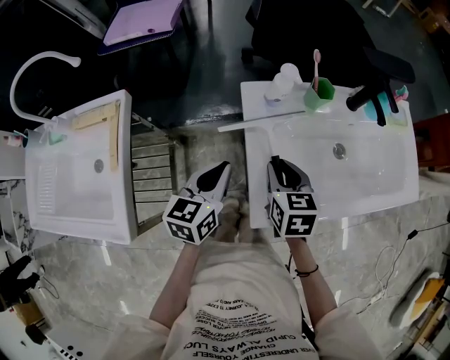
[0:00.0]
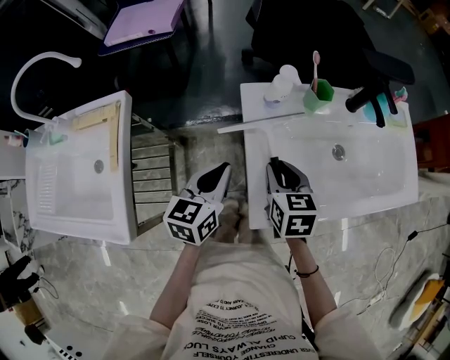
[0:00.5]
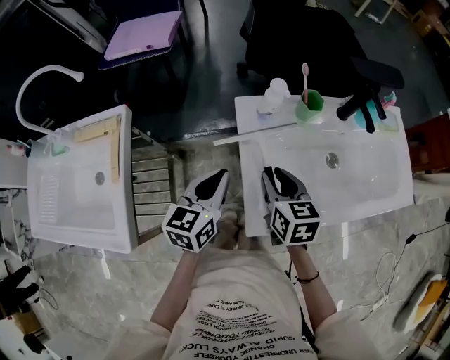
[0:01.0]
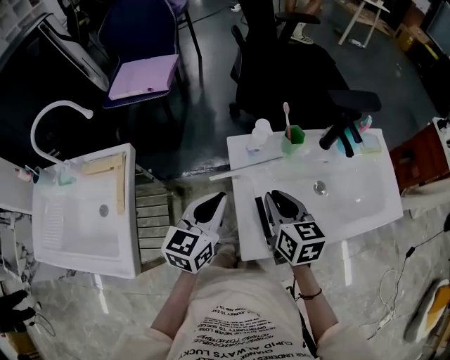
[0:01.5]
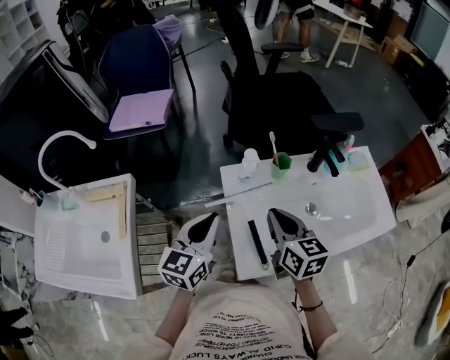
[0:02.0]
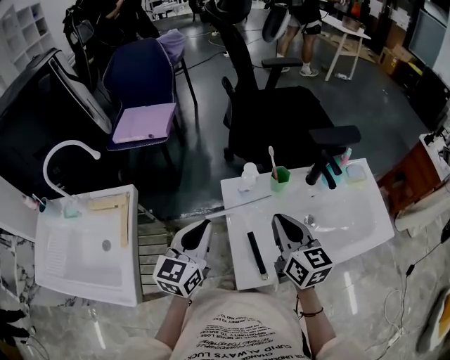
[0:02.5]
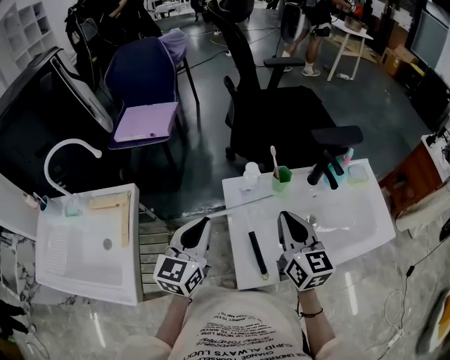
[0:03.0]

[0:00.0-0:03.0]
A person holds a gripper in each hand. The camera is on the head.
0:00.0 to 0:01.5: The grippers both shift upward by approximately 10 cm.
0:01.5 to 0:03.0: The left gripper is displaced upward by roughly 5 cm; the right gripper shifts about 10 cm upward, and swivels approximately 20 degrees.

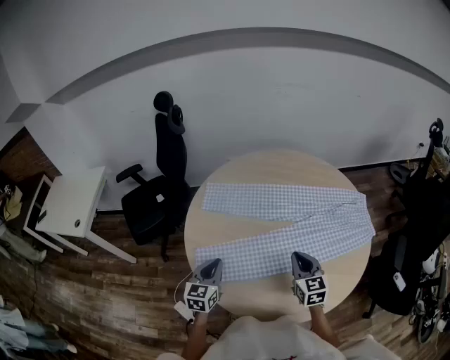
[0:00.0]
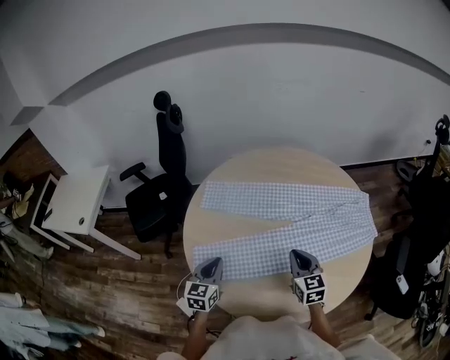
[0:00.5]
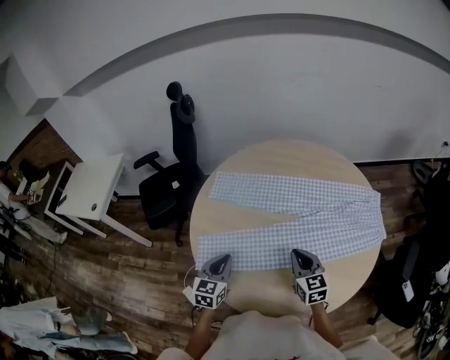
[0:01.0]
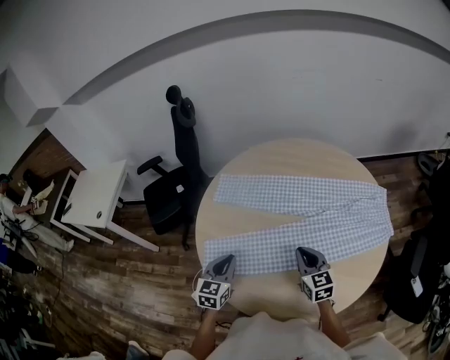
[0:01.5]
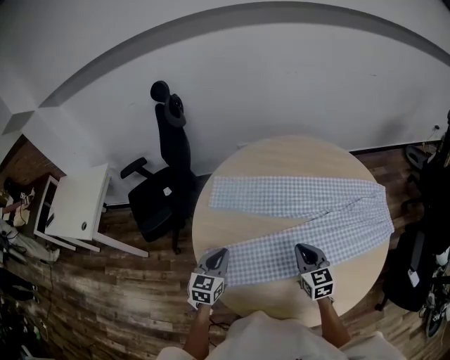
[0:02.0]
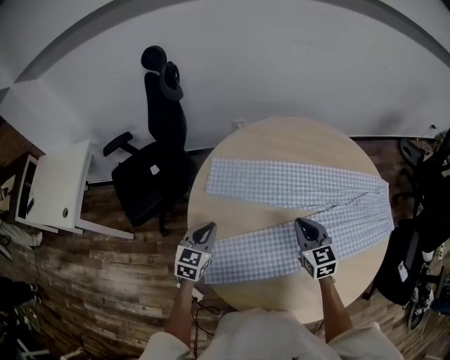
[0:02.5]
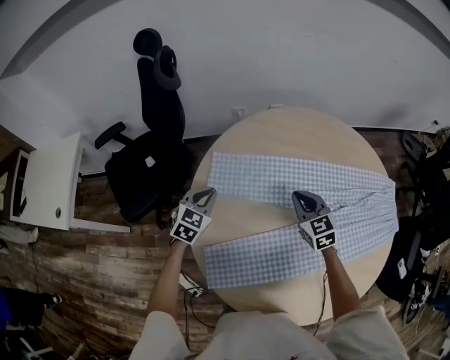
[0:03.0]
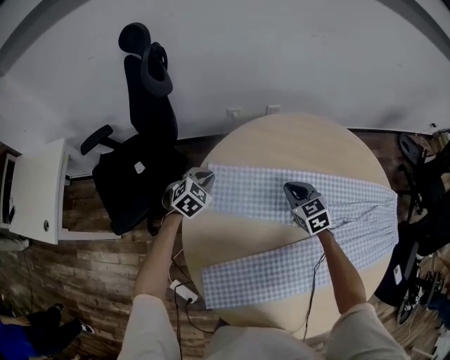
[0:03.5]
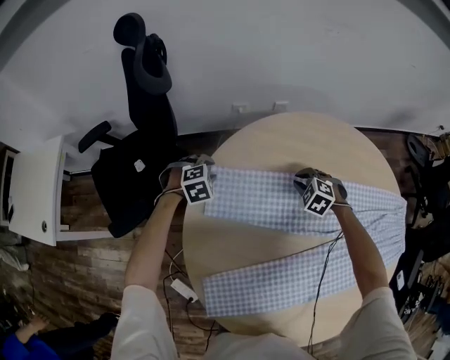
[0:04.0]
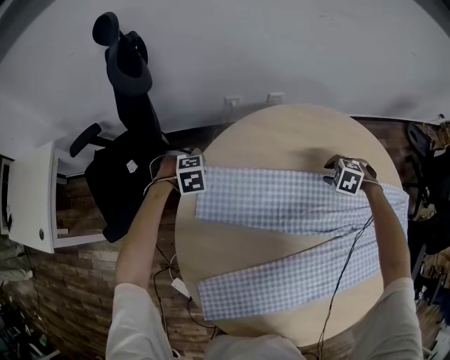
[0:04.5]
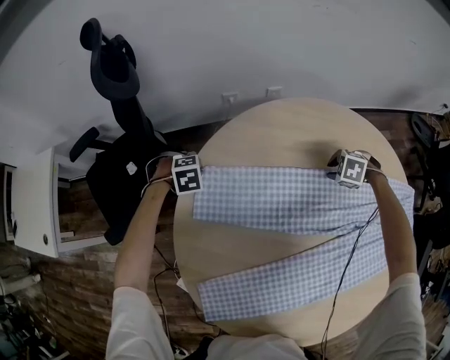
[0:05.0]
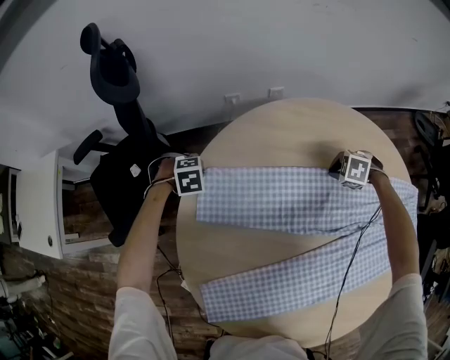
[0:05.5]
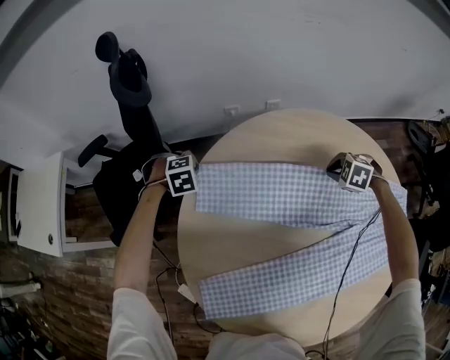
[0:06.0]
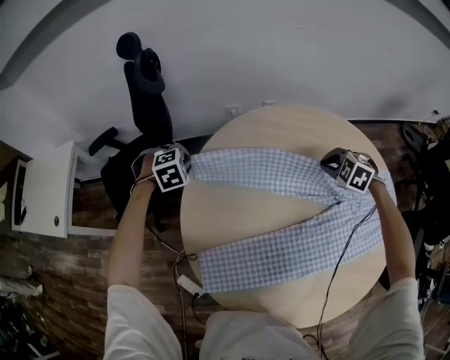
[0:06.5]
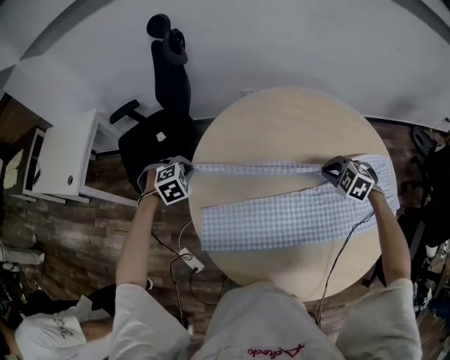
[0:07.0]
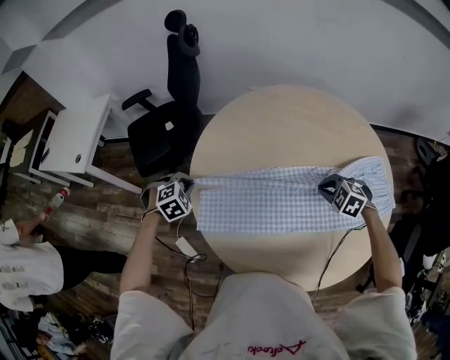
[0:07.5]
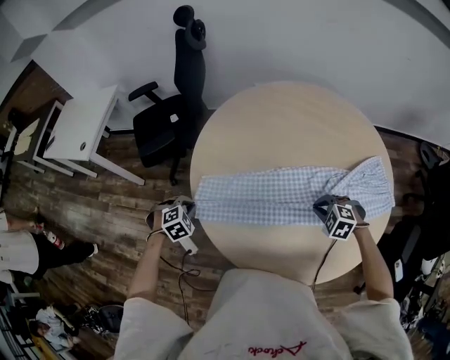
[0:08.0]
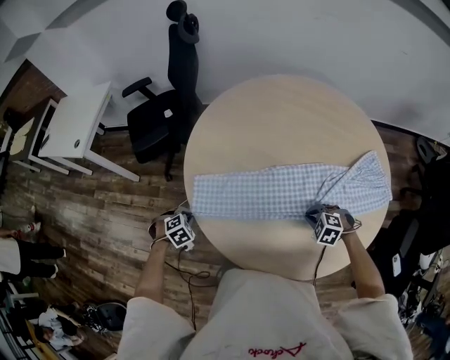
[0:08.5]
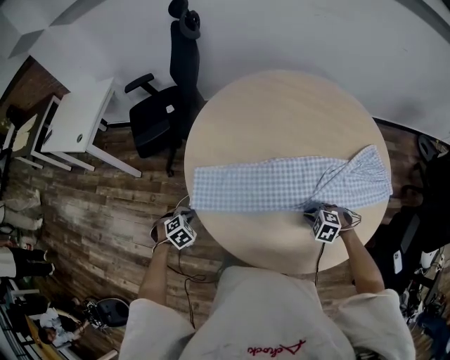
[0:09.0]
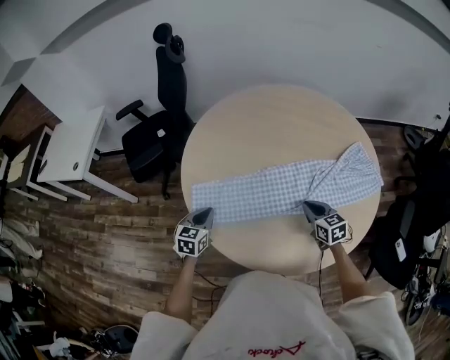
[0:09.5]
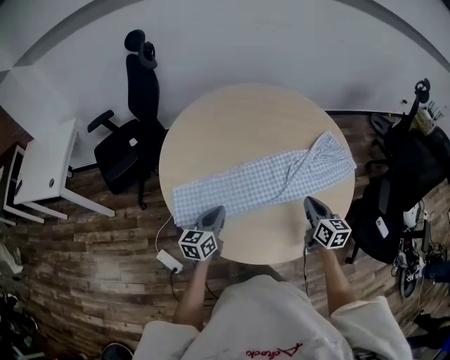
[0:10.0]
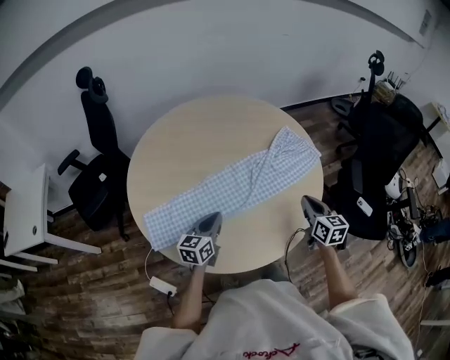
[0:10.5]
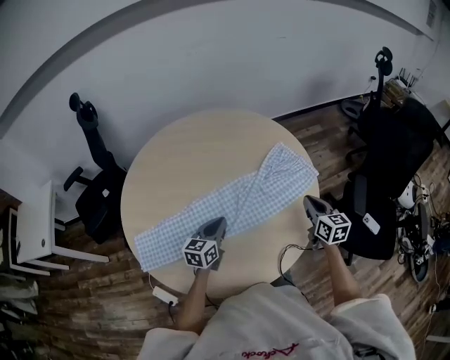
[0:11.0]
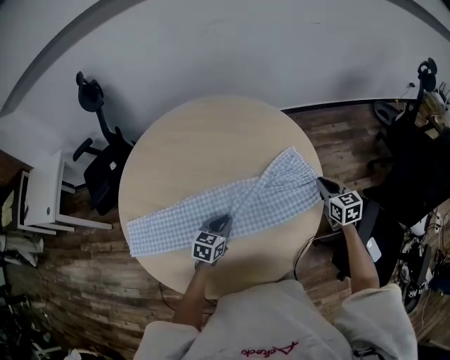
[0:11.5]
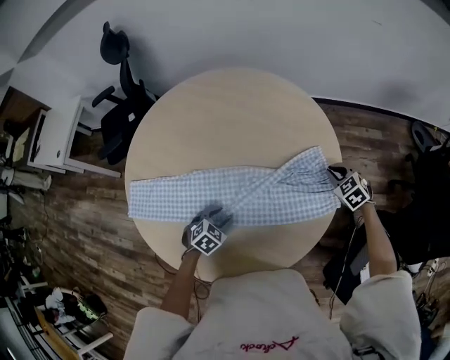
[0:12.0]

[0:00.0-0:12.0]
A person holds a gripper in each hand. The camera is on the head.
0:00.0 to 0:02.0: Both grippers travel together forward, about 5 cm.
0:02.0 to 0:04.0: Both grippers travel together forward and downward, approximately 40 cm. The right gripper angles its fingers downward, by about 40 degrees, while the left gripper points its fingers about 40 degrees further downward, and opens.
0:04.0 to 0:06.0: The right gripper changes place by some 15 cm, and opens and closes again; the left gripper closes up.
0:06.0 to 0:08.0: Both grippers are carried about 50 cm. The left gripper rotates roughly 30 degrees. Meanwhile the right gripper rotates approximately 20 degrees.
0:08.0 to 0:10.0: The right gripper shifts by roughly 15 cm, and rolls clockwise, seen from behind, by approximately 80 degrees. Meanwhile the left gripper moves some 20 cm, and points its fingers roughly 50 degrees further upward.
0:10.0 to 0:12.0: The left gripper moves some 35 cm, points its fingers some 50 degrees further downward, and opens. Meanwhile the right gripper changes place by some 50 cm, and points its fingers approximately 30 degrees further downward.

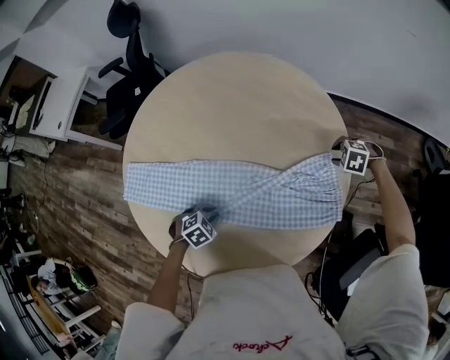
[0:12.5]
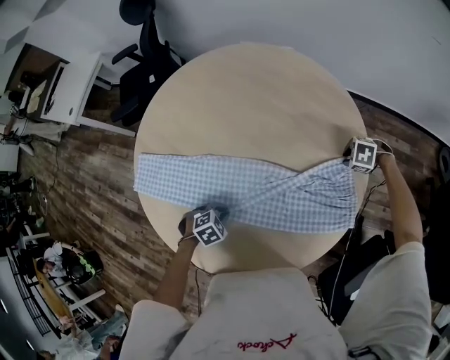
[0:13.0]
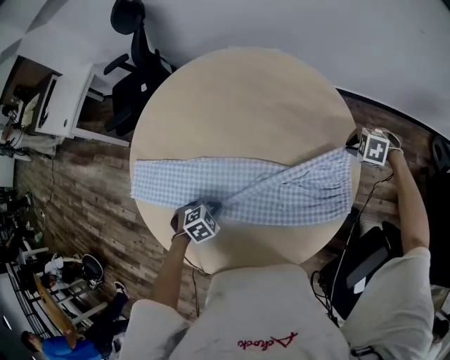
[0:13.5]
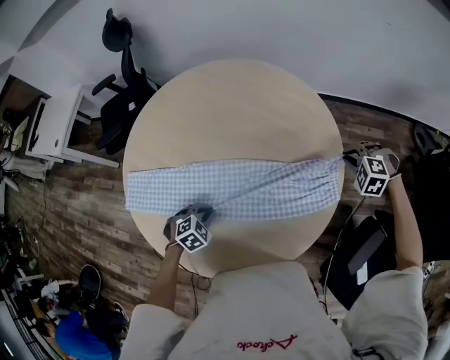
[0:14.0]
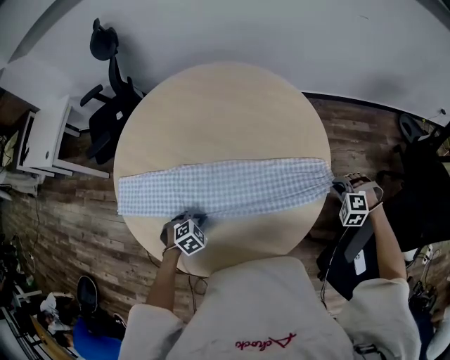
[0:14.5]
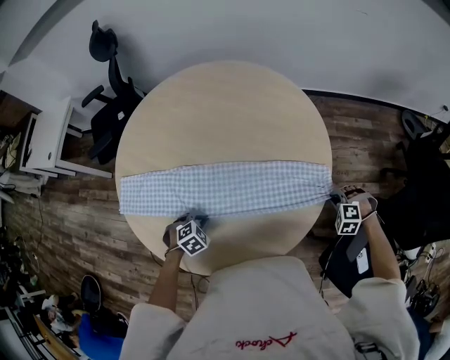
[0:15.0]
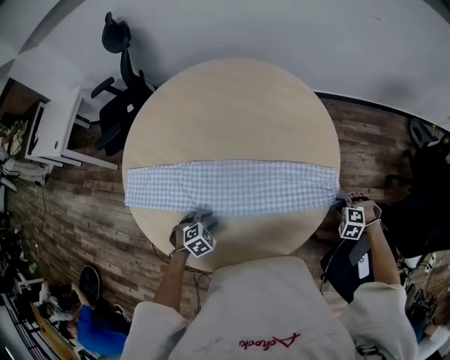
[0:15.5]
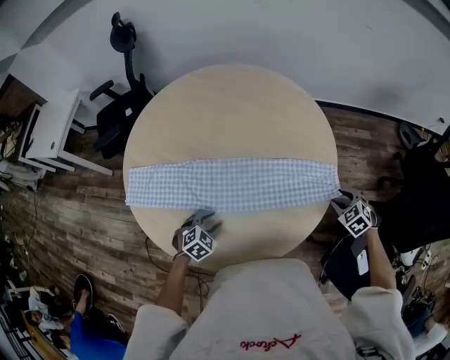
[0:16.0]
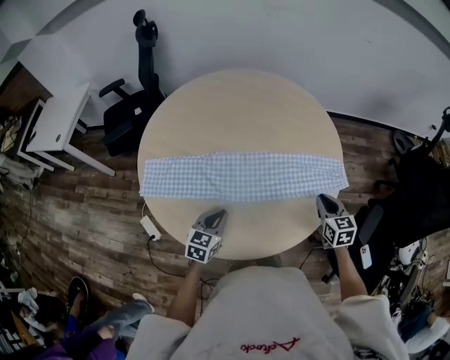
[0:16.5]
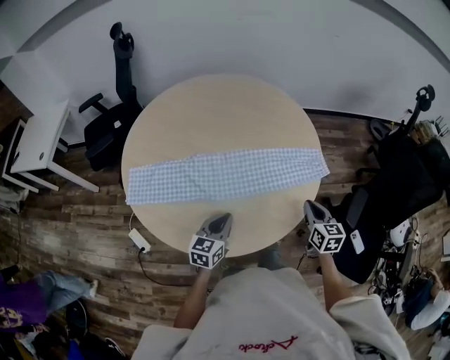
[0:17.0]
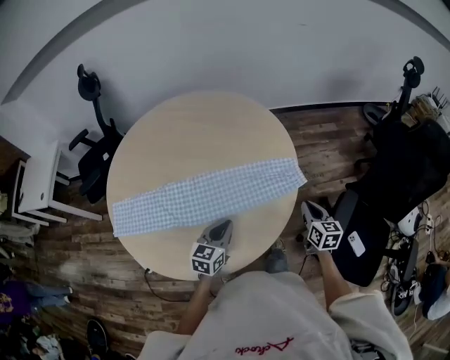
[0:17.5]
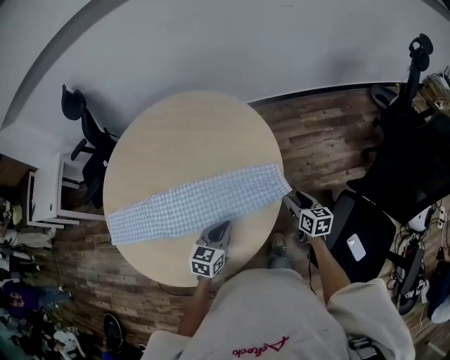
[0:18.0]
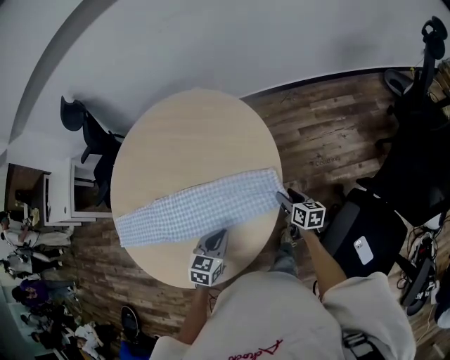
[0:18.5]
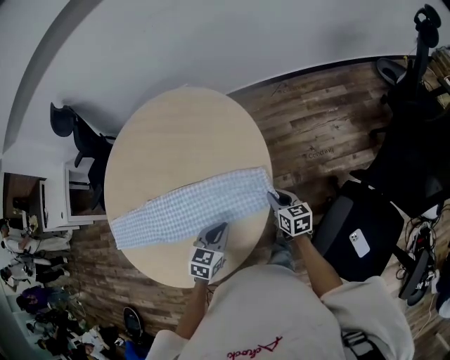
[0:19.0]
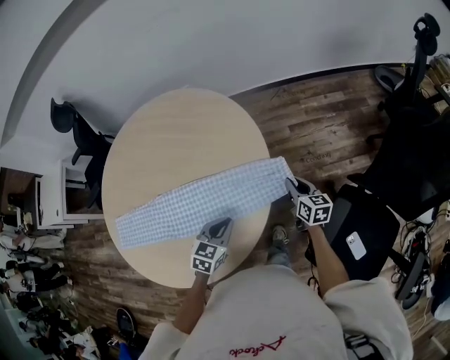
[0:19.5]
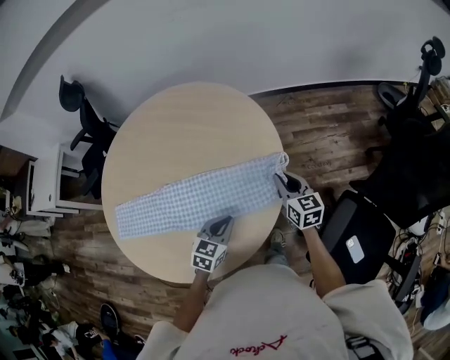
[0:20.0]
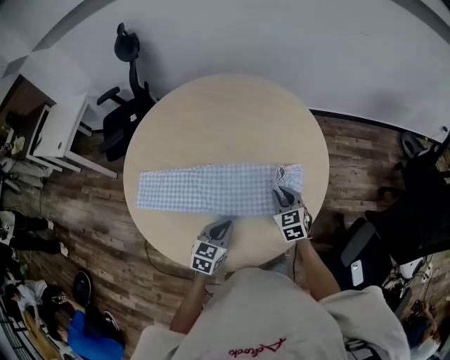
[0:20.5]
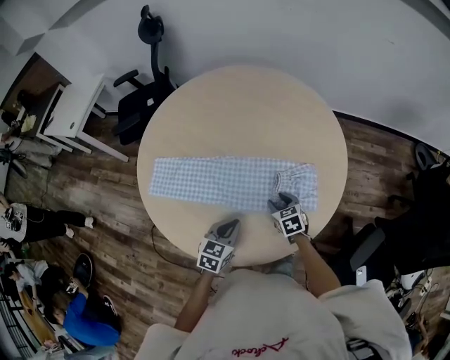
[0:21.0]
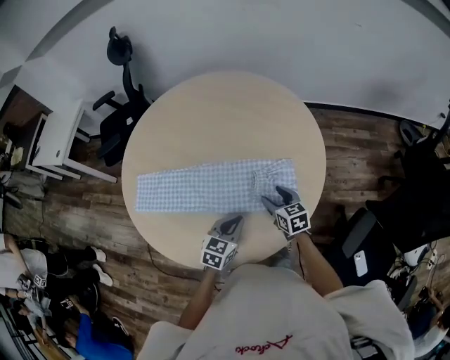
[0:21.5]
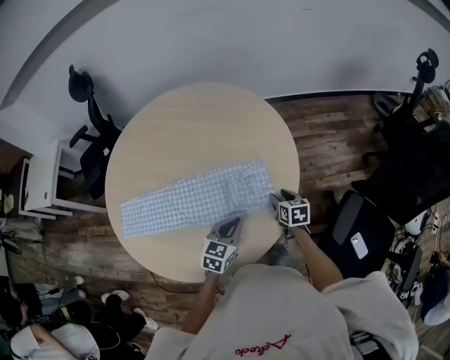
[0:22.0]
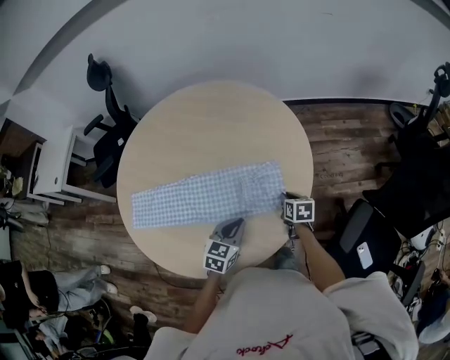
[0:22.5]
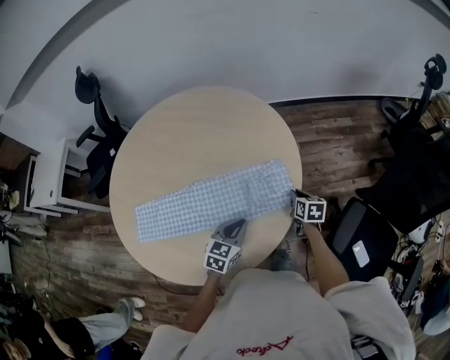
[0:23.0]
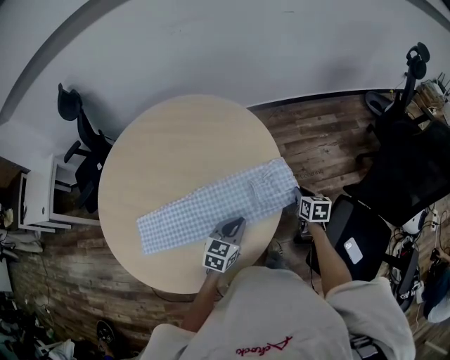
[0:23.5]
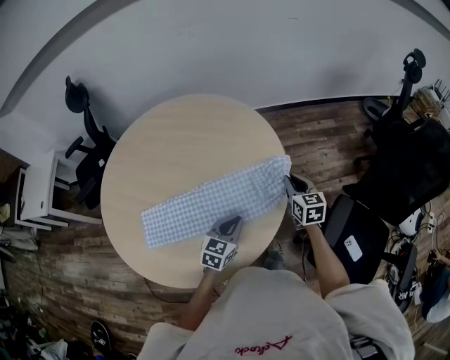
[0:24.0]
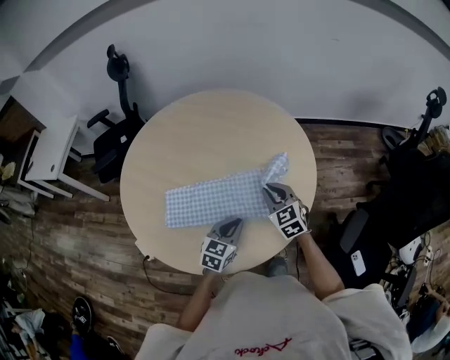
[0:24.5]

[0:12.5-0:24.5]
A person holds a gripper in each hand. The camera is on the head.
0:12.5 to 0:14.5: The right gripper goes up and down, approximately 15 cm each way, reversing 2 times, turns by approximately 20 degrees, and closes its fingers.
0:14.5 to 0:16.5: The left gripper travels upward by some 10 cm, tips its fingers upward by approximately 40 degrees, and opens, then closes again; the right gripper moves roughly 20 cm, rotates around the line of its fingers by some 80 degrees, clockwise from behind, and opens, then closes once more.
0:16.5 to 0:18.5: The right gripper shifts roughly 30 cm to the right, downward and forward, turns by roughly 40 degrees, and opens up. Meanwhile the left gripper heads to the right and forward, covering approximately 30 cm.
0:18.5 to 0:20.5: The right gripper shifts some 25 cm to the left and upward, twists some 50 degrees counterclockwise, seen from behind, and closes its fingers. The left gripper travels to the left by some 15 cm.
0:20.5 to 0:22.5: The right gripper travels to the right and downward by approximately 15 cm, changes its angle by approximately 40 degrees, and opens and closes again. Meanwhile the left gripper is displaced to the right by approximately 10 cm.
0:22.5 to 0:24.5: The left gripper travels to the right and back again, some 10 cm each way. Meanwhile the right gripper travels upward and to the left by approximately 20 cm, and rolls counterclockwise, seen from behind, by roughly 50 degrees.
